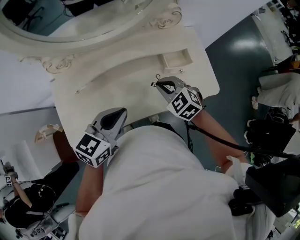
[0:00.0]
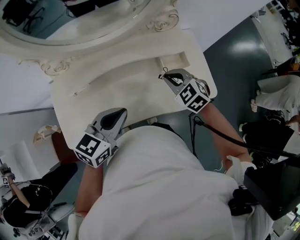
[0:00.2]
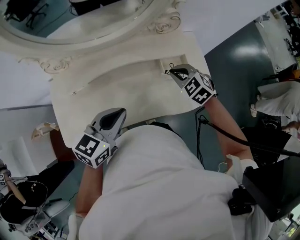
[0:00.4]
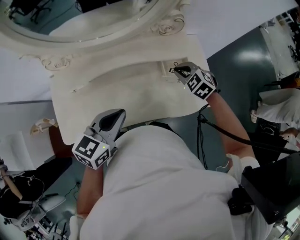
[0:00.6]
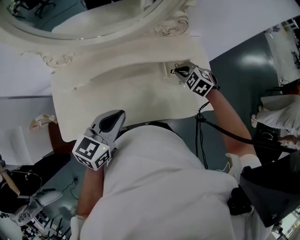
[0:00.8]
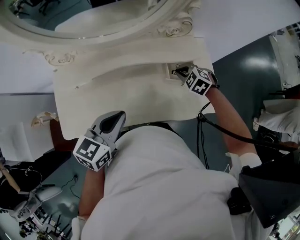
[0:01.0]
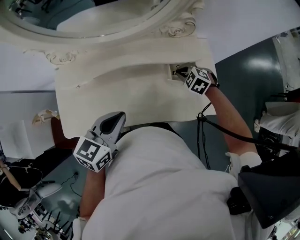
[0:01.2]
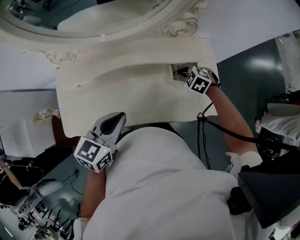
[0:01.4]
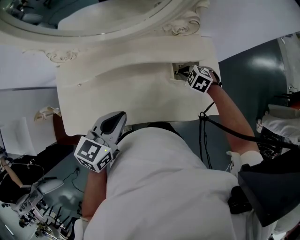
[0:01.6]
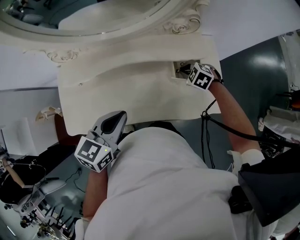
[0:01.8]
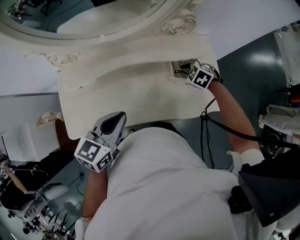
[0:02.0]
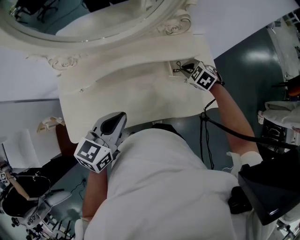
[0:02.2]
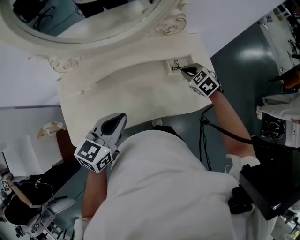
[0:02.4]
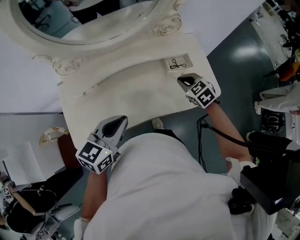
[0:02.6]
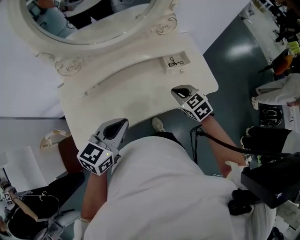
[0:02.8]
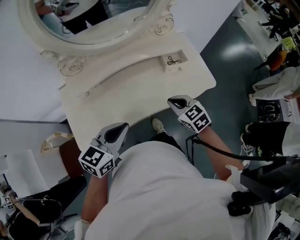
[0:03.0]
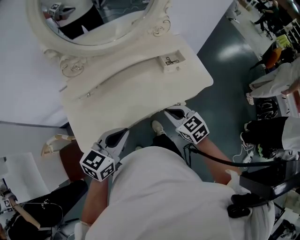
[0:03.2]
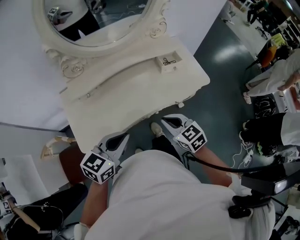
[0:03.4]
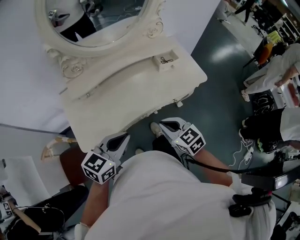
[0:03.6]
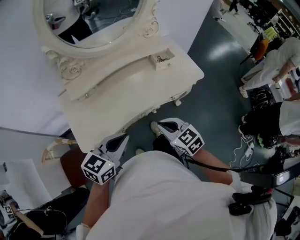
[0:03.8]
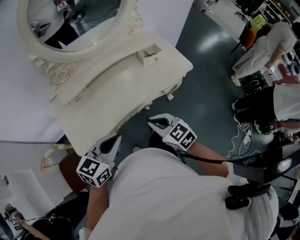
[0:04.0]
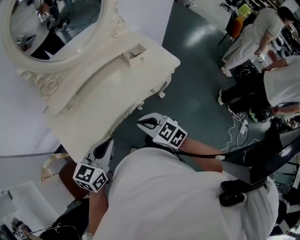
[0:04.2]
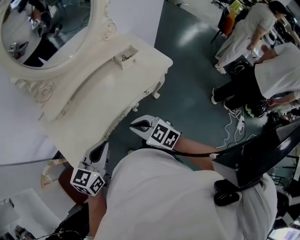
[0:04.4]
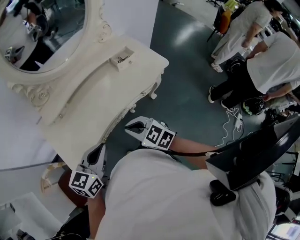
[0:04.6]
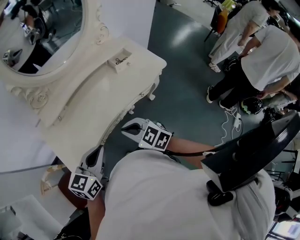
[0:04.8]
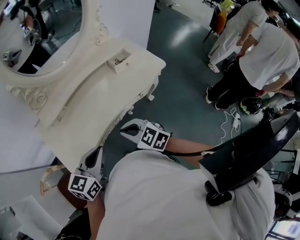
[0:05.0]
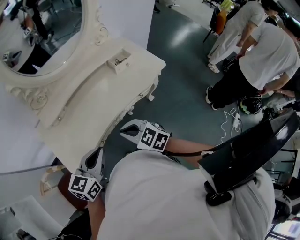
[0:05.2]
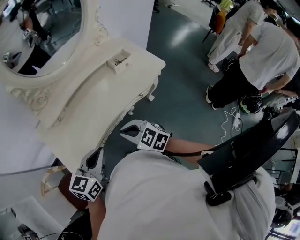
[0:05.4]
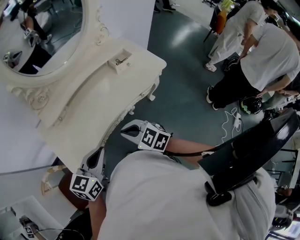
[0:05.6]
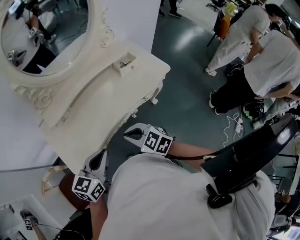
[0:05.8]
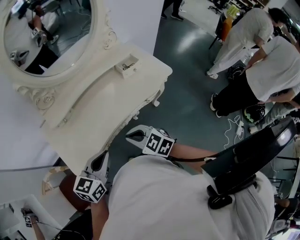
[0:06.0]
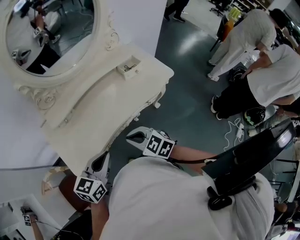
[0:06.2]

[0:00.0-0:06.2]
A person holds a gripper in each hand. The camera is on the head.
0:00.0 to 0:01.6: The right gripper shifts roughly 20 cm forward, to the right and downward, and swivels approximately 30 degrees.
0:01.6 to 0:03.2: The left gripper is displaced backward and to the left by roughly 20 cm, and turns by approximately 20 degrees, while the right gripper is displaced backward, to the left and upward by approximately 40 cm, and changes its angle by roughly 50 degrees.
0:03.2 to 0:04.6: The left gripper travels backward by roughly 10 cm. Meanwhile the right gripper heads backward and to the left, covering some 15 cm.
0:04.6 to 0:06.2: The grippers move only a little.

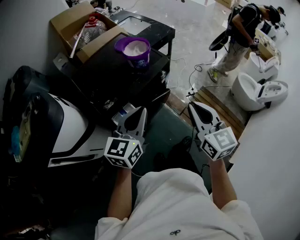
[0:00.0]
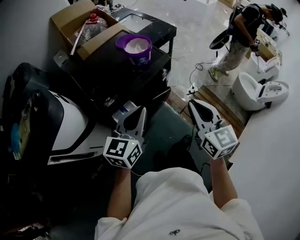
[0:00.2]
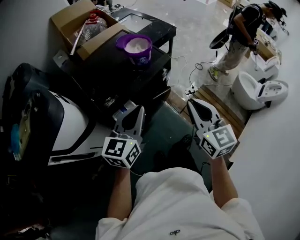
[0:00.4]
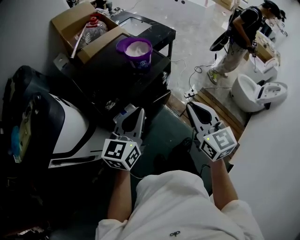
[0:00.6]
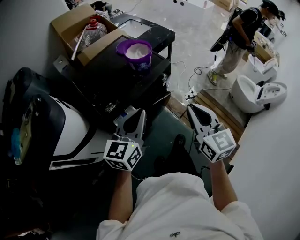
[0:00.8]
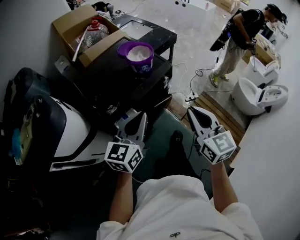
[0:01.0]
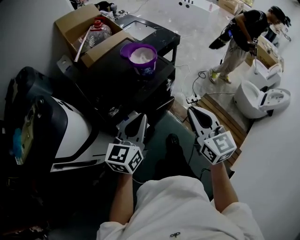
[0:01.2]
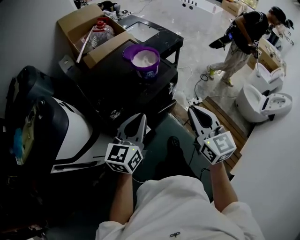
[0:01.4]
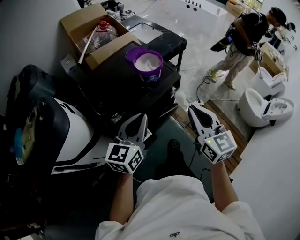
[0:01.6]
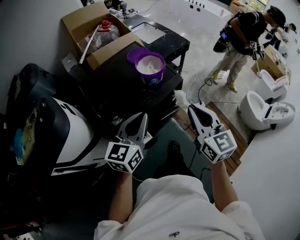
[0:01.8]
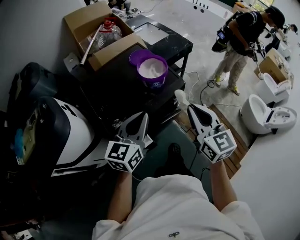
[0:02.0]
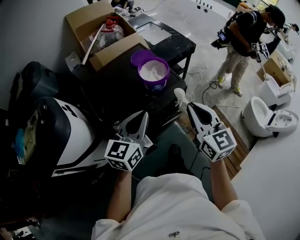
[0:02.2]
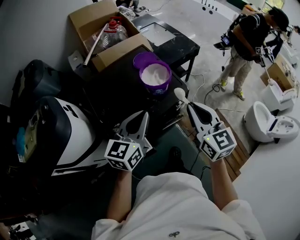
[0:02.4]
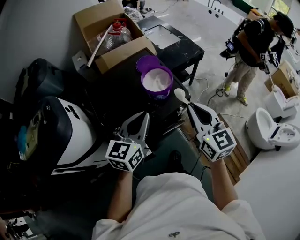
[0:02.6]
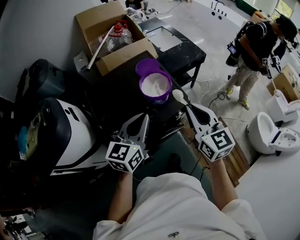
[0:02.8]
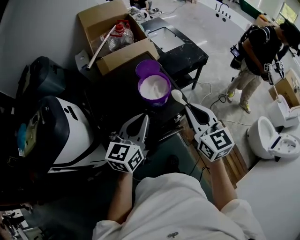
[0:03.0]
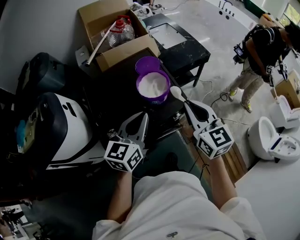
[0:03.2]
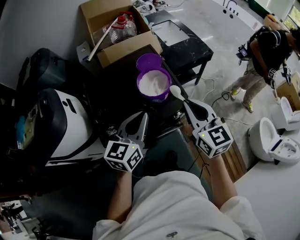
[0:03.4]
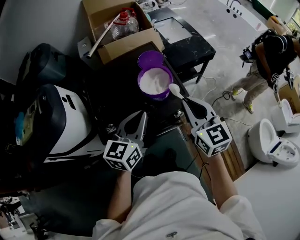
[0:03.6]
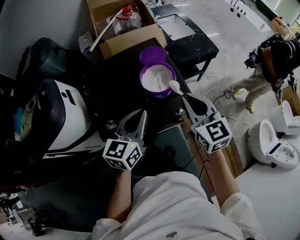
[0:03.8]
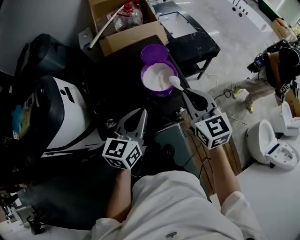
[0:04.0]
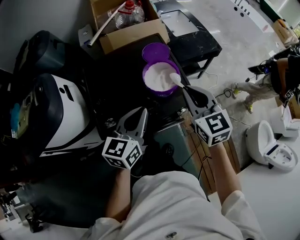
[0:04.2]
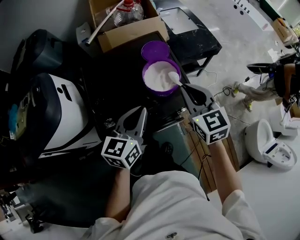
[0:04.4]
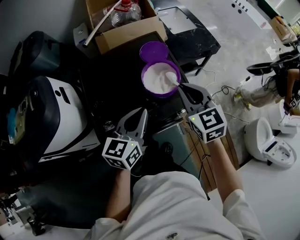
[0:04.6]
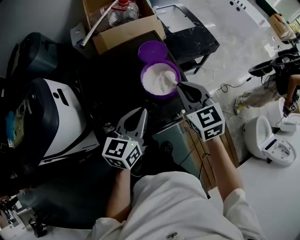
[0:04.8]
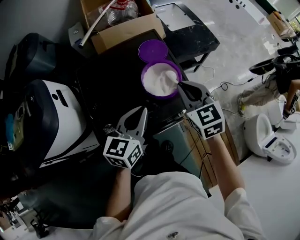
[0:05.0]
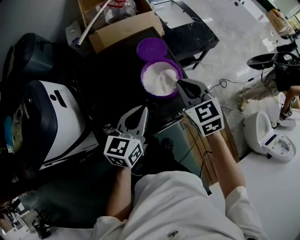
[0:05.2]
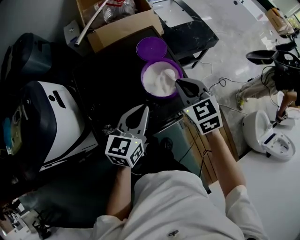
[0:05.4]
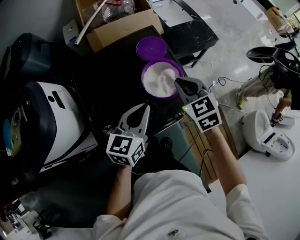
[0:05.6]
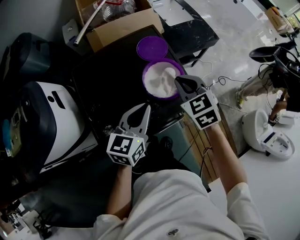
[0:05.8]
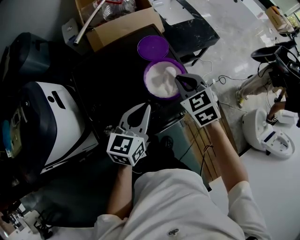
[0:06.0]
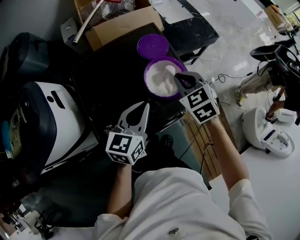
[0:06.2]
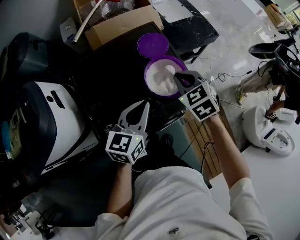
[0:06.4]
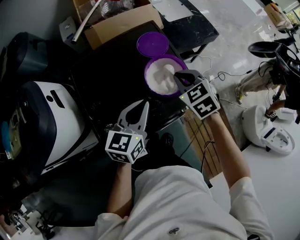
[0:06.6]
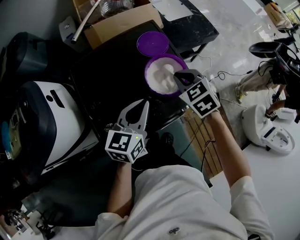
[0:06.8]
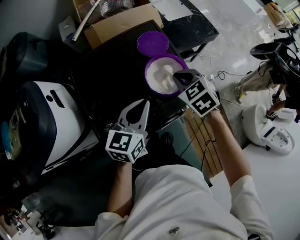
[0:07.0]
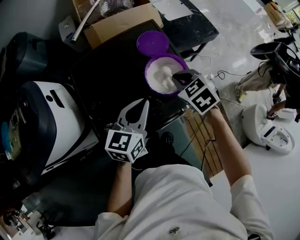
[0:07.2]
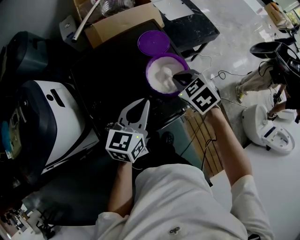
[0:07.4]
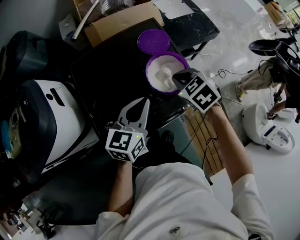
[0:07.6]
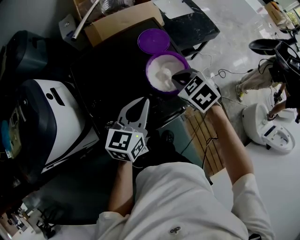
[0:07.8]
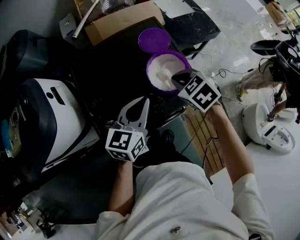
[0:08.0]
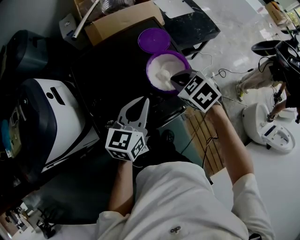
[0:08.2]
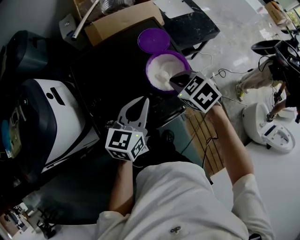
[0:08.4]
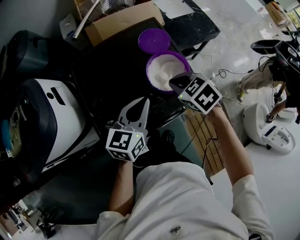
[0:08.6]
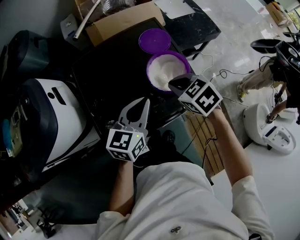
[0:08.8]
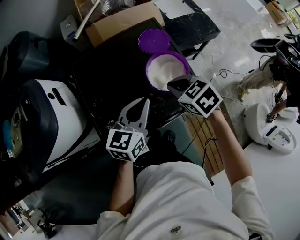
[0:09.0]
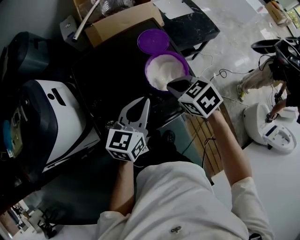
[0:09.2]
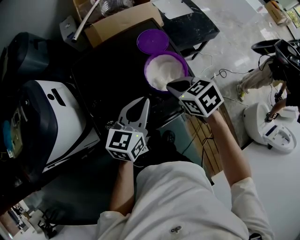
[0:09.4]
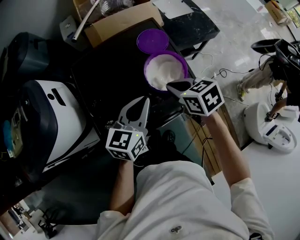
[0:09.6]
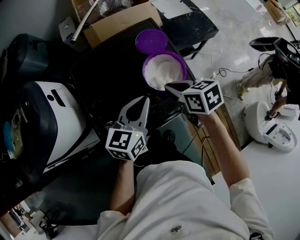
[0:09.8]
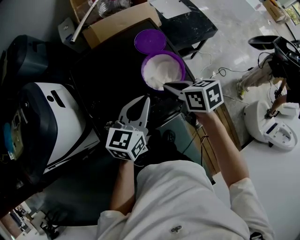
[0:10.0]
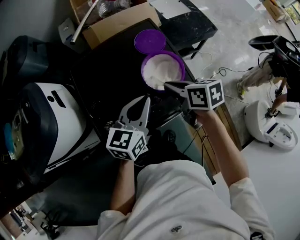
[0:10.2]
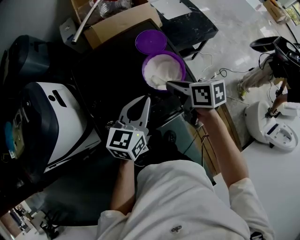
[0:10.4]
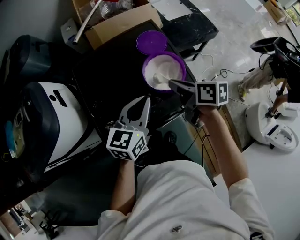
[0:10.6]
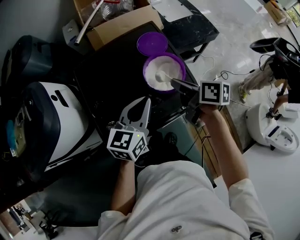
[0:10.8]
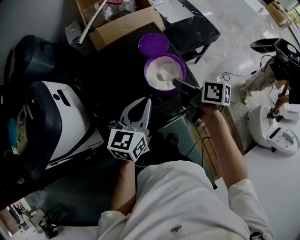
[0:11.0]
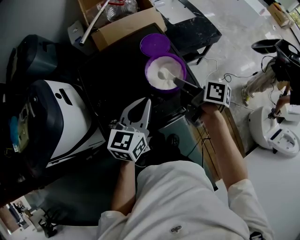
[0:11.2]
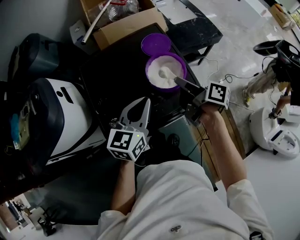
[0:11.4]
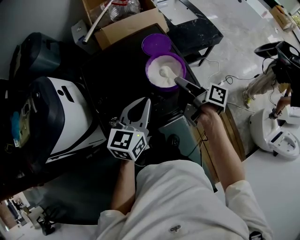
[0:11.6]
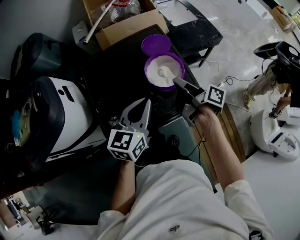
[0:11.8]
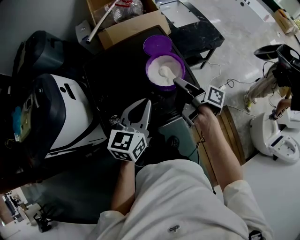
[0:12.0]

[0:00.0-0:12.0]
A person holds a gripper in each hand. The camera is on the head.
0:00.0 to 0:01.6: Both grippers move forward, about 10 cm.
0:01.6 to 0:03.0: The two grippers go approximately 15 cm forward.
0:03.0 to 0:04.4: The right gripper travels forward by about 10 cm. The left gripper shifts by approximately 5 cm.
0:04.4 to 0:06.0: The right gripper goes roughly 10 cm forward and downward, and rotates some 20 degrees, while the left gripper moves forward, some 5 cm.
0:06.0 to 0:07.6: The grippers make only small movements.
0:07.6 to 0:09.0: There are only small adjustments of the grippers.
0:09.0 to 0:10.4: The right gripper twists some 40 degrees clockwise, seen from behind.
0:10.4 to 0:12.0: The left gripper shifts by roughly 5 cm. The right gripper turns by roughly 50 degrees.

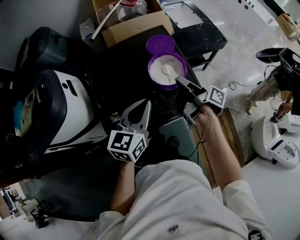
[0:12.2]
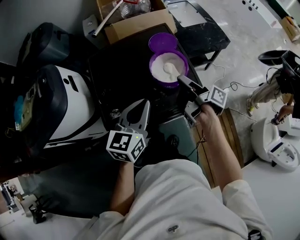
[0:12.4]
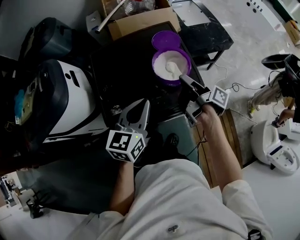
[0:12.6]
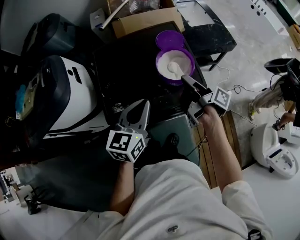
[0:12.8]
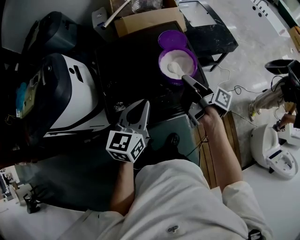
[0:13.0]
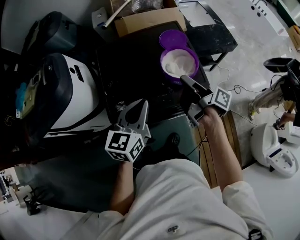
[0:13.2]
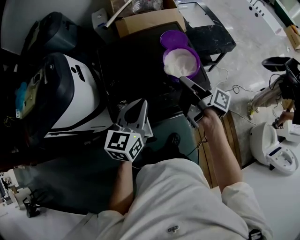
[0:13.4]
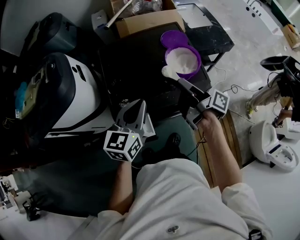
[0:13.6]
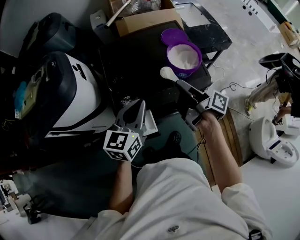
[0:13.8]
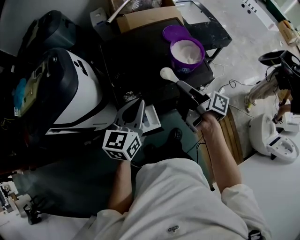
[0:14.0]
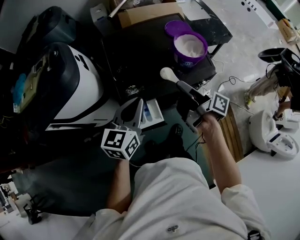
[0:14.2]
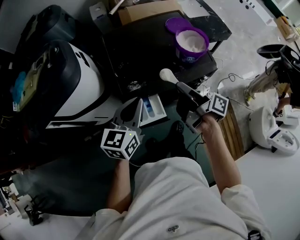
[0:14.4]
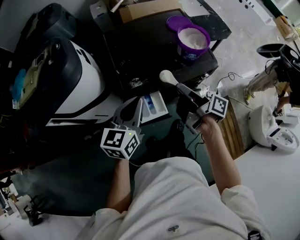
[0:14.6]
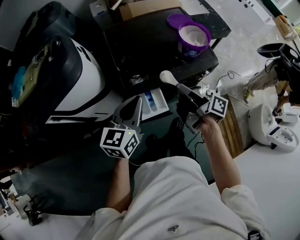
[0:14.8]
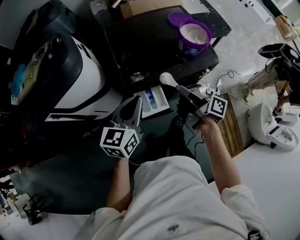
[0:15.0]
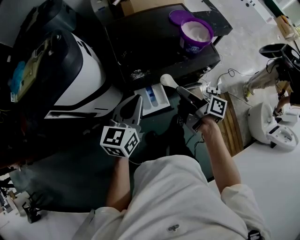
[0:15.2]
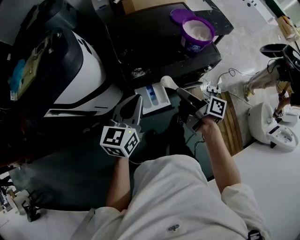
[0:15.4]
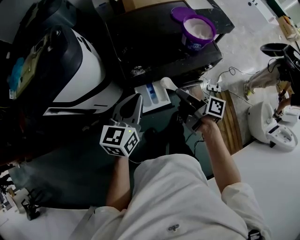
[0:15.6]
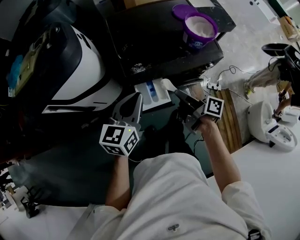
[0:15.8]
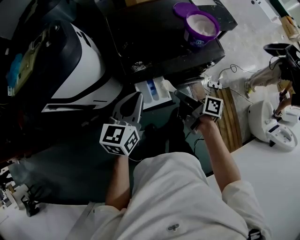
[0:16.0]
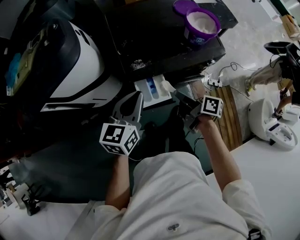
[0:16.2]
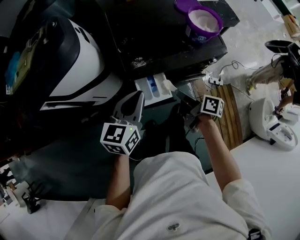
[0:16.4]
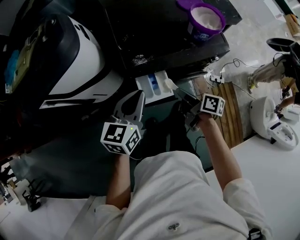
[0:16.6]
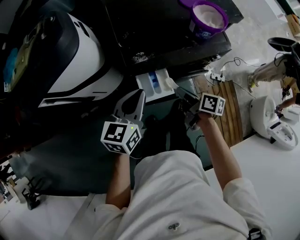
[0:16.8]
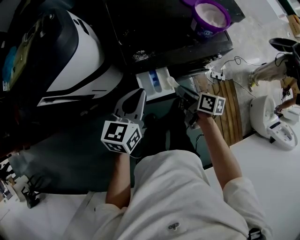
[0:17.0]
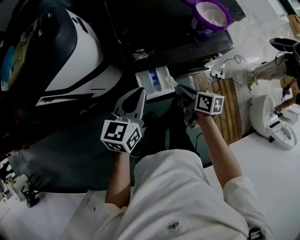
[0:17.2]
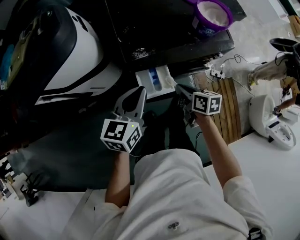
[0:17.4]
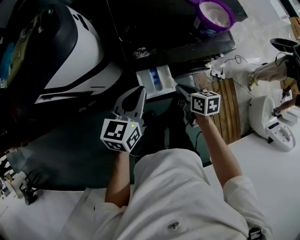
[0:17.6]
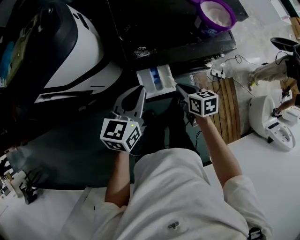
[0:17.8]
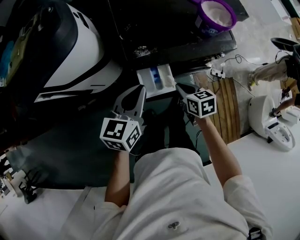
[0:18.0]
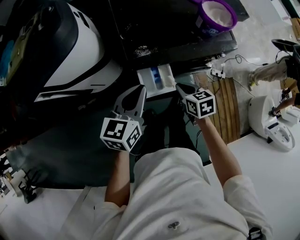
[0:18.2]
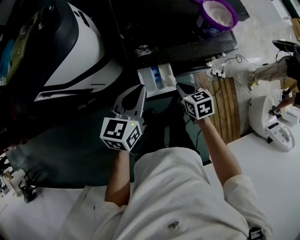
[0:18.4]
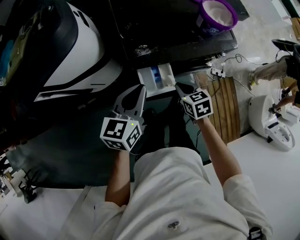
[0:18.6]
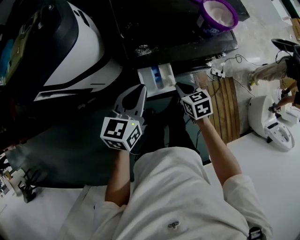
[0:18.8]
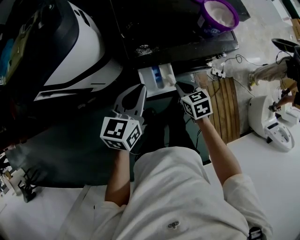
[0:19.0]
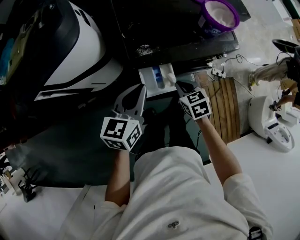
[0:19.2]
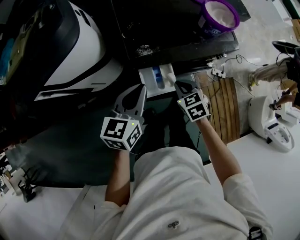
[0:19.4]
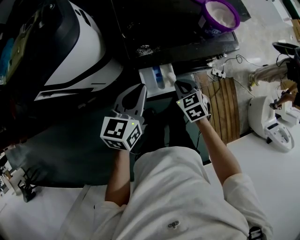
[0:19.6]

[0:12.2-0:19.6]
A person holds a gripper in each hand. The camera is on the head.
0:12.2 to 0:13.6: The right gripper heads to the left and backward, covering roughly 10 cm, while the left gripper is displaced to the left by about 10 cm.
0:13.6 to 0:15.2: The right gripper goes some 20 cm backward and to the left. Meanwhile the left gripper moves to the left and backward, approximately 15 cm.
0:15.2 to 0:16.6: The right gripper shifts some 10 cm downward, and swivels approximately 20 degrees.
0:16.6 to 0:18.2: The right gripper twists roughly 50 degrees counterclockwise, seen from behind.
0:18.2 to 0:19.6: The right gripper swivels about 30 degrees.
